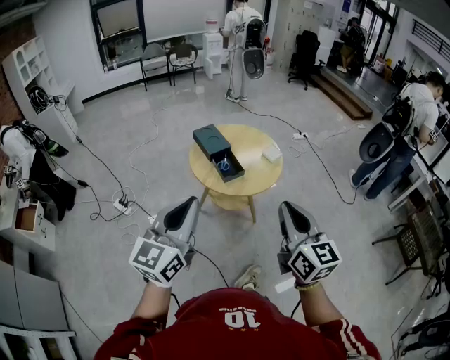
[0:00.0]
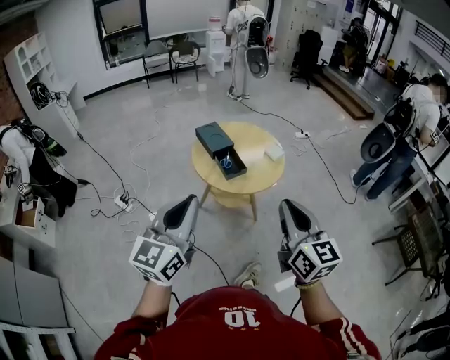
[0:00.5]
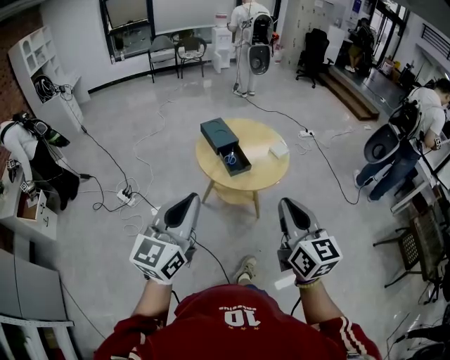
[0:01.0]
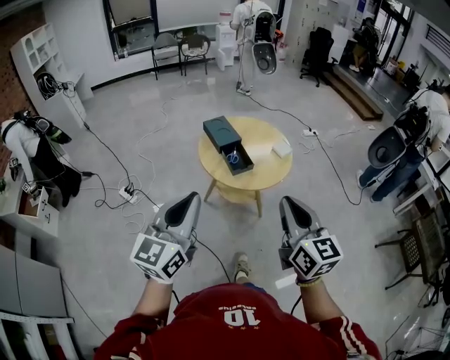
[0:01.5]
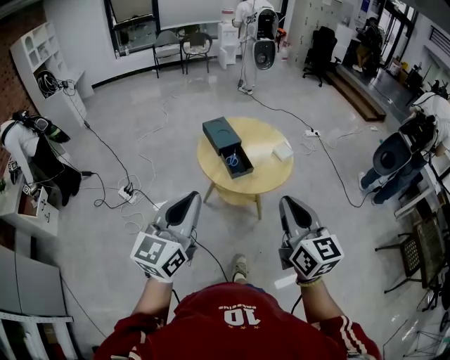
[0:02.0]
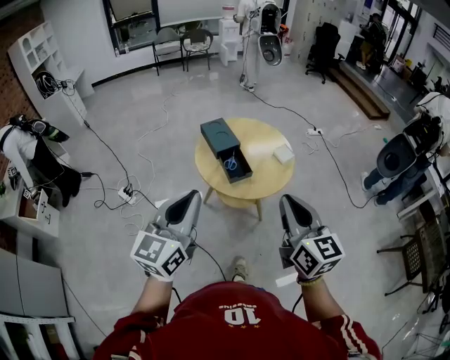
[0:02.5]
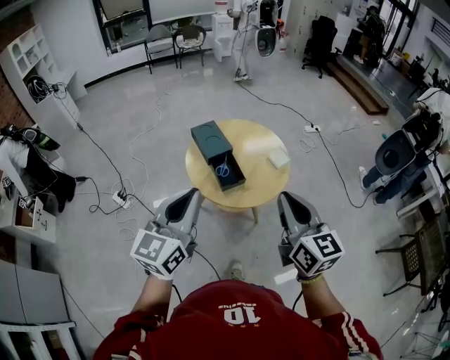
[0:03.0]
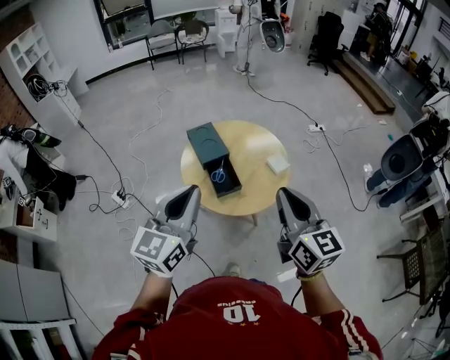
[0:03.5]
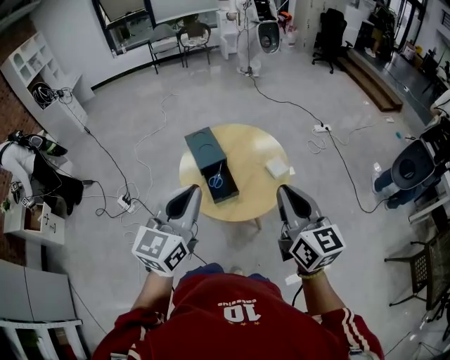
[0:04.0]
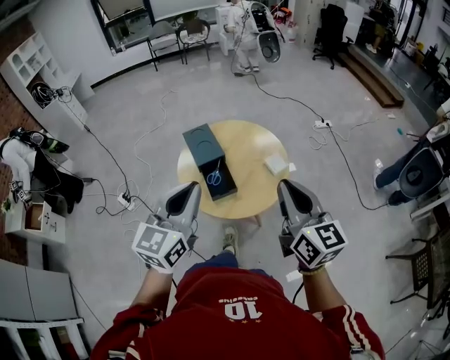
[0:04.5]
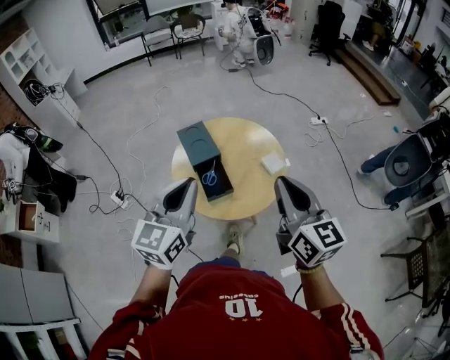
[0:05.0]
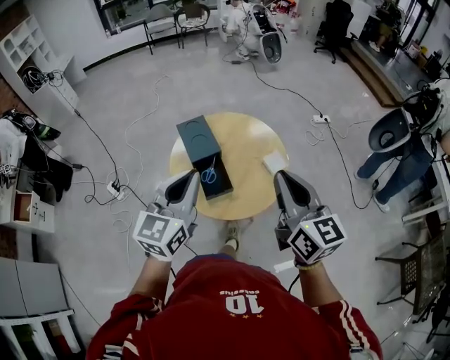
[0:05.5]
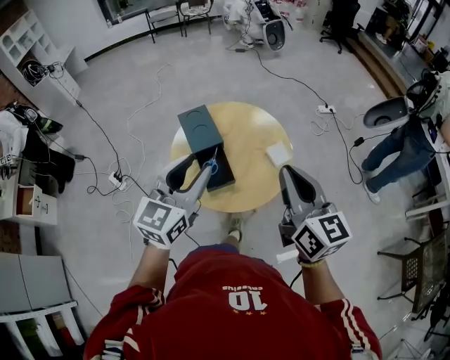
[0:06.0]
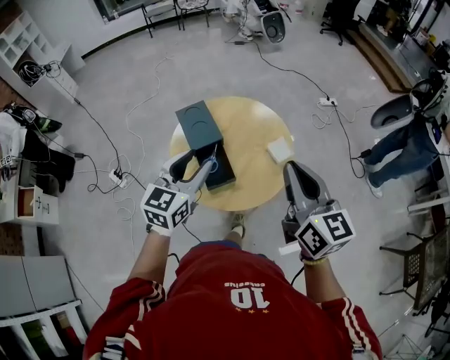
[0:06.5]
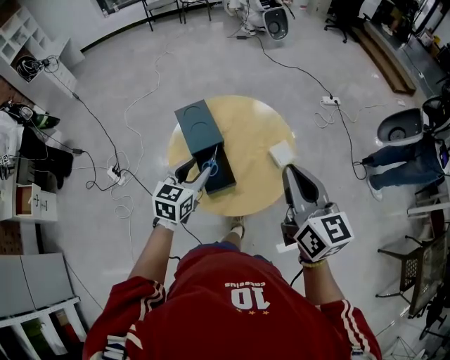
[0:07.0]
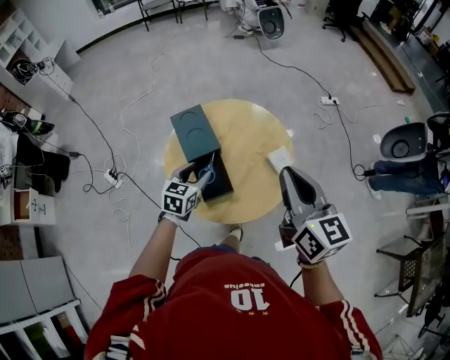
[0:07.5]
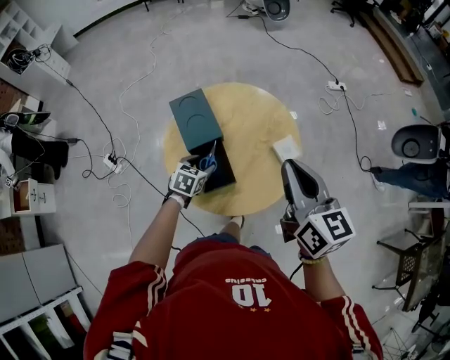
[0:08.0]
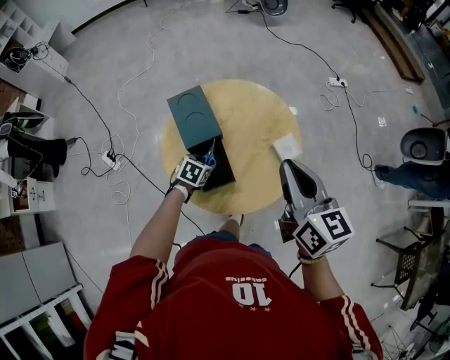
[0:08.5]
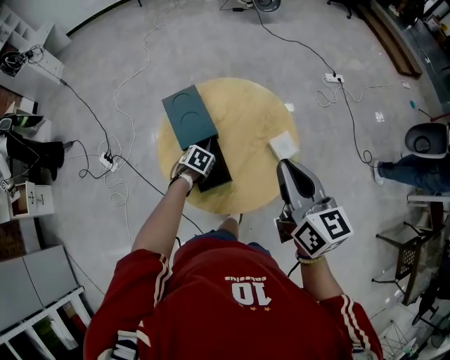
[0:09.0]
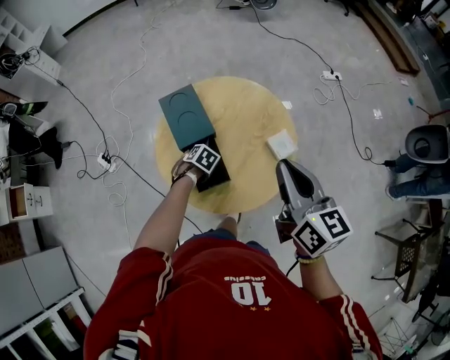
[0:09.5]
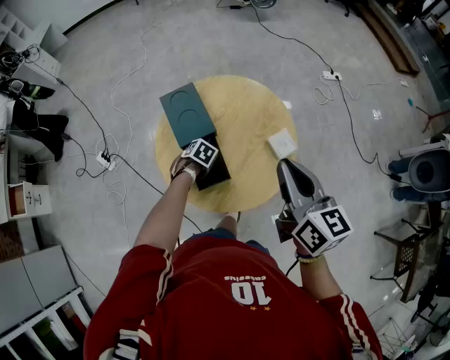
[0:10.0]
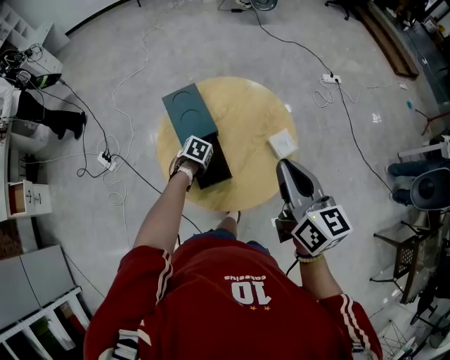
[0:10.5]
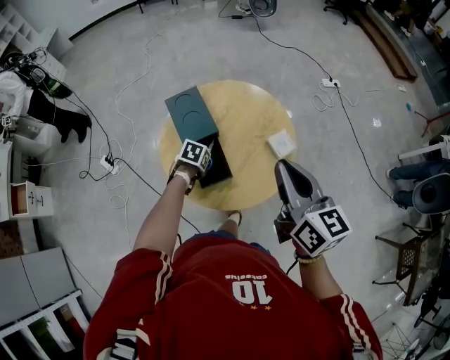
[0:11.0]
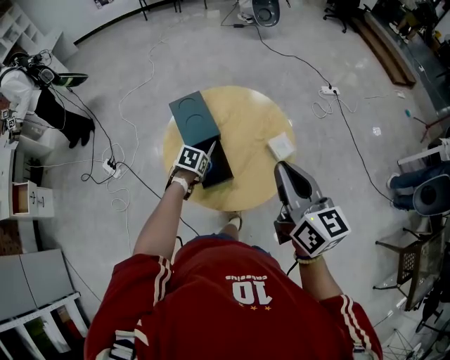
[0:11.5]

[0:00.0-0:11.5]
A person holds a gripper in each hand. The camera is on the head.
0:00.0 to 0:02.0: The right gripper changes place by some 5 cm.
0:02.0 to 0:04.0: The grippers both shift forward and to the right by some 25 cm.
0:04.0 to 0:06.0: The left gripper goes about 10 cm forward and downward, and opens up; the right gripper travels forward by roughly 10 cm.
0:06.0 to 0:07.5: The right gripper is displaced forward by some 10 cm; the left gripper is displaced downward and forward by about 30 cm, and turns by approximately 30 degrees.
0:07.5 to 0:09.5: The right gripper heads downward, covering approximately 5 cm, while the left gripper heads downward, covering roughly 20 cm, and tilts its fingers approximately 50 degrees downward.
0:09.5 to 0:11.5: The left gripper moves upward, about 10 cm, swivels some 20 degrees, and closes. The right gripper ends up roughly 5 cm from where it was.

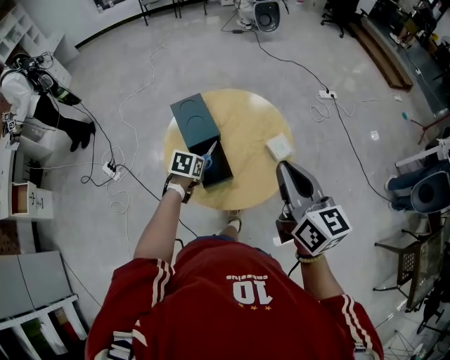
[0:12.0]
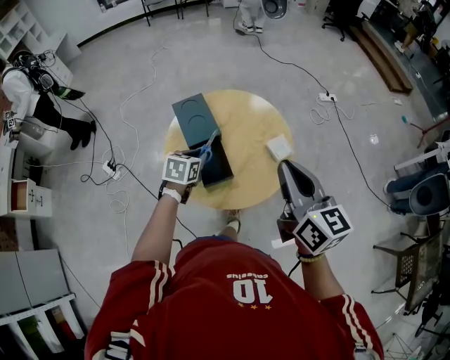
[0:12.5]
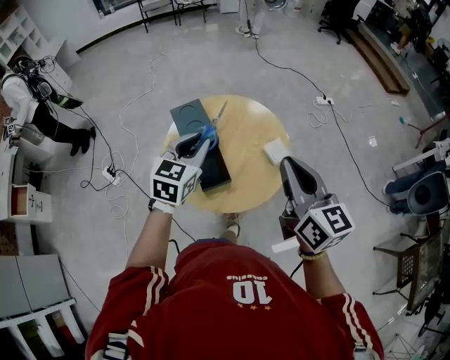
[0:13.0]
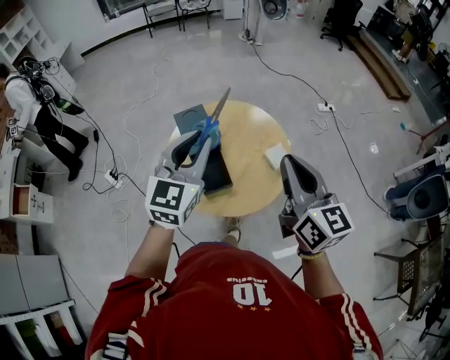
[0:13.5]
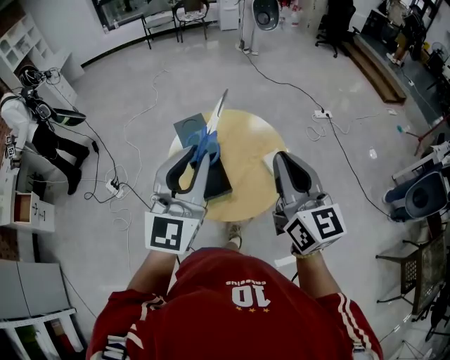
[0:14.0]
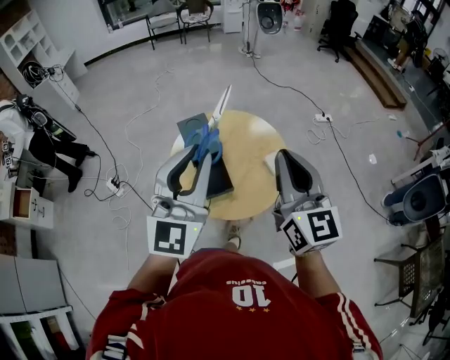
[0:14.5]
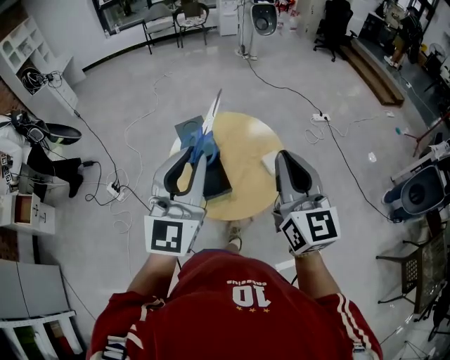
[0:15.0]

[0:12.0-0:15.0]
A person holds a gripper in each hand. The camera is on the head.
0:12.0 to 0:13.5: The left gripper heads upward, covering some 35 cm, and angles its fingers upward, by about 50 degrees.
0:13.5 to 0:15.0: The left gripper goes roughly 10 cm backward and upward. Meanwhile the right gripper shifts by roughly 5 cm.

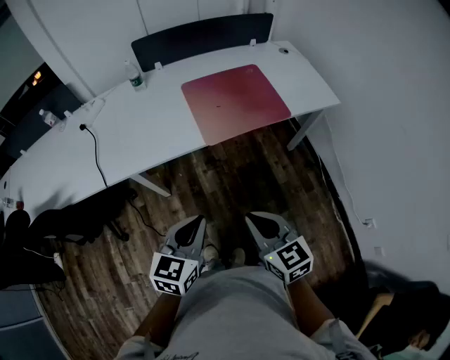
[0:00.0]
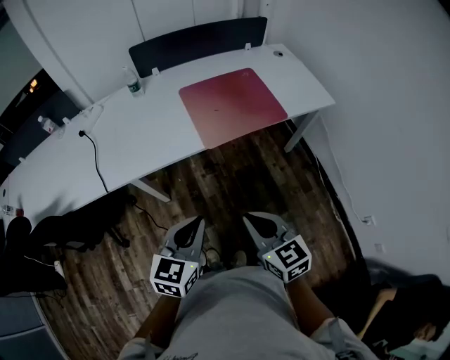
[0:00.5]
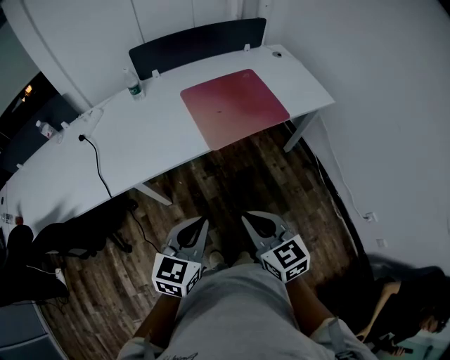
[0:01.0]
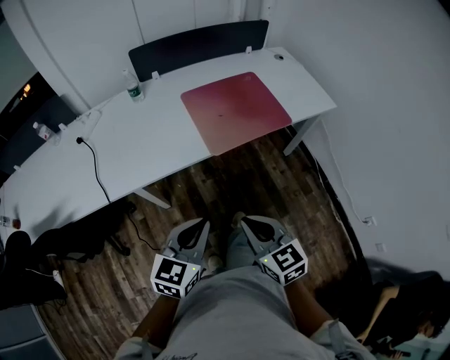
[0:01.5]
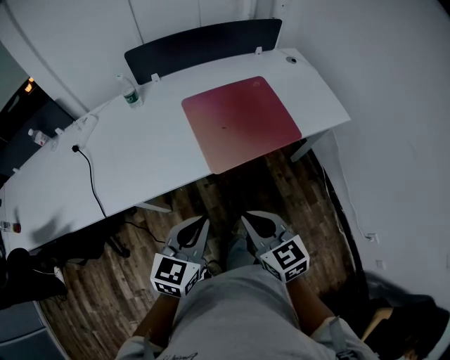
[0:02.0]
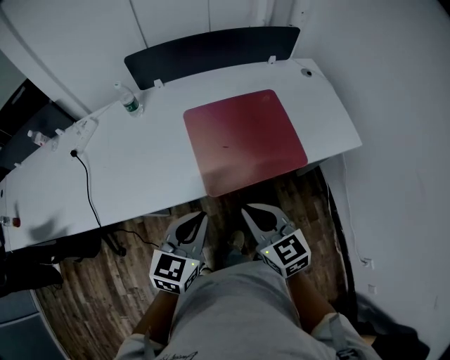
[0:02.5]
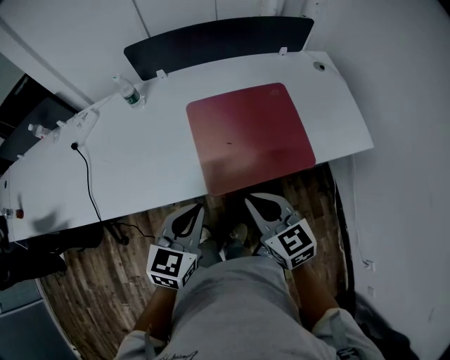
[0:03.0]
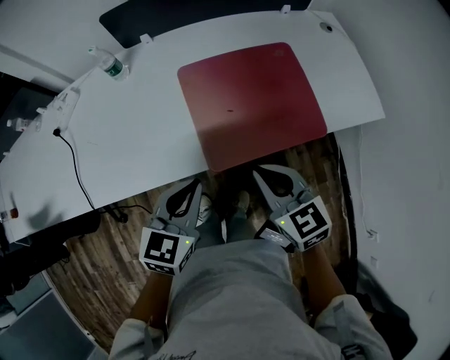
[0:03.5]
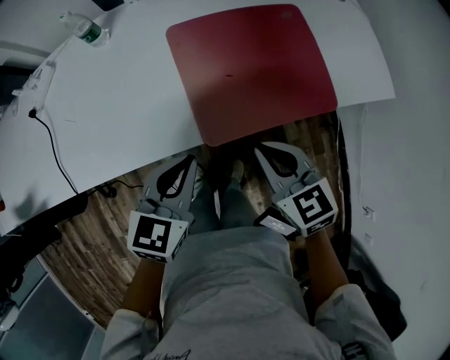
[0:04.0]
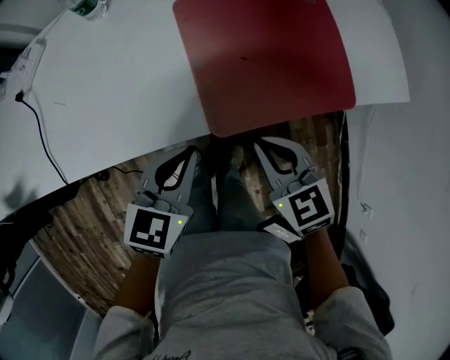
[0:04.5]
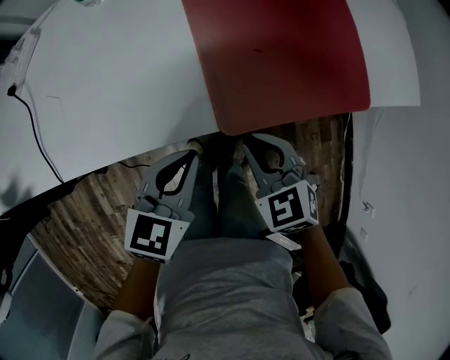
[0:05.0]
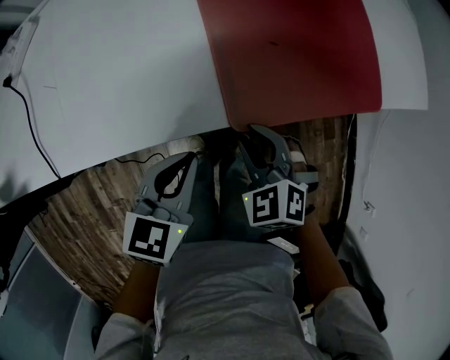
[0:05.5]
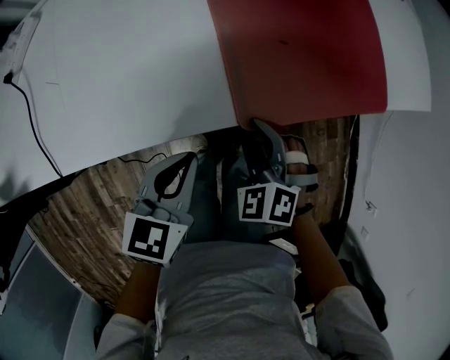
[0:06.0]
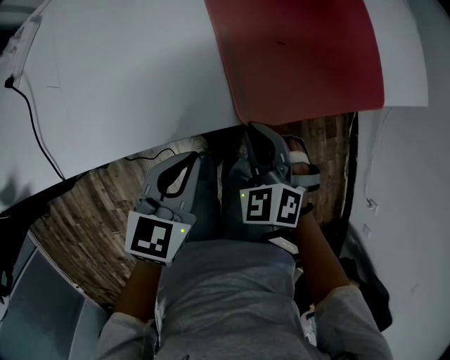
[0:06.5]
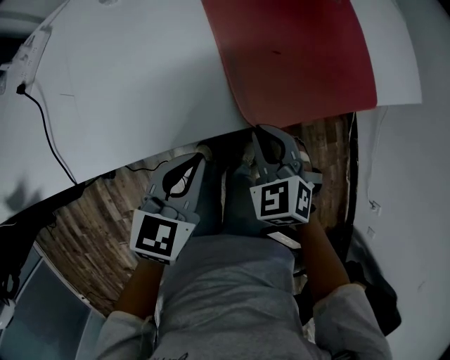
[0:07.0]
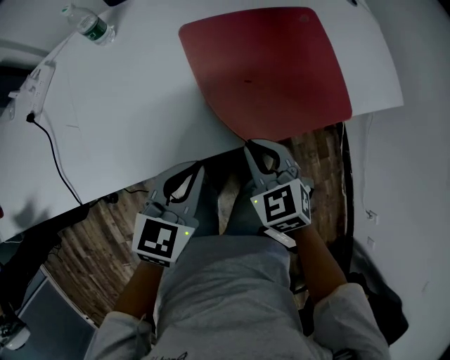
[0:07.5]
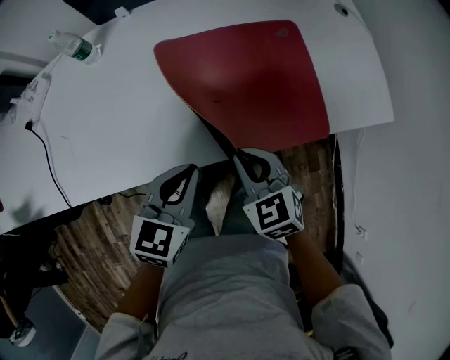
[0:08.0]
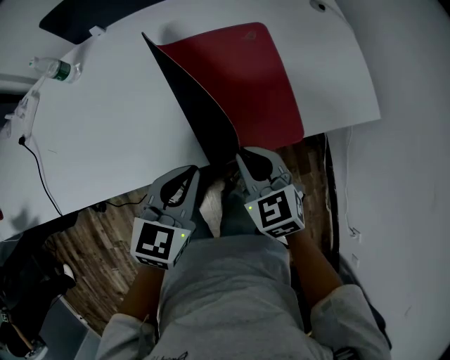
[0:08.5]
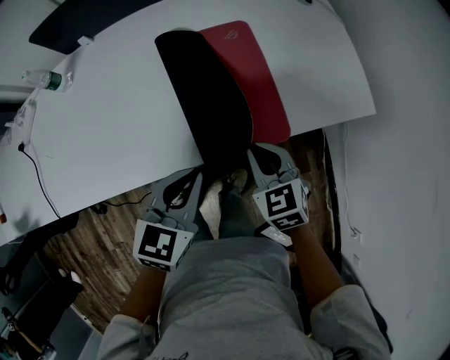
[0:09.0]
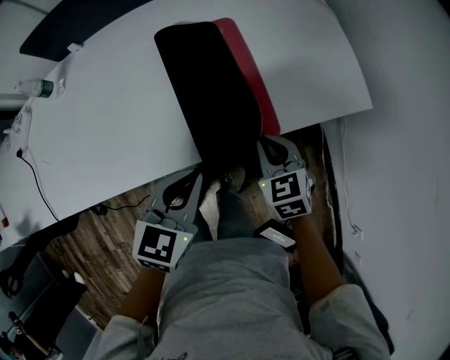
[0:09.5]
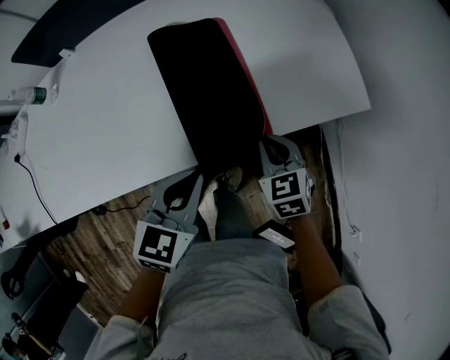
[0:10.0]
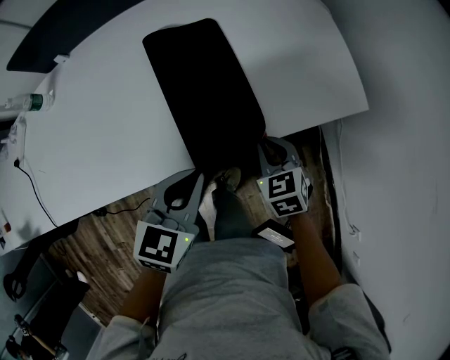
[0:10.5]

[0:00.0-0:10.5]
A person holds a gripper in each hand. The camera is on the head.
0:00.0 to 0:02.0: Both grippers move forward, roughly 15 cm.
0:02.0 to 0:04.0: Both grippers travel together forward and downward, roughly 20 cm.
0:04.0 to 0:06.5: Both grippers travel together downward and to the left, some 15 cm. The right gripper changes its angle by roughly 40 degrees, and opens, then closes once more.
0:06.5 to 0:08.5: The right gripper travels to the right, upward and forward by some 25 cm, and rotates roughly 30 degrees; the left gripper heads to the right, forward and upward, covering approximately 25 cm.
0:08.5 to 0:10.5: The left gripper moves to the right, approximately 15 cm, while the right gripper heads to the right and downward, covering roughly 20 cm.

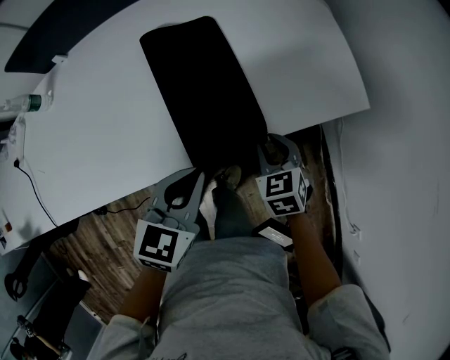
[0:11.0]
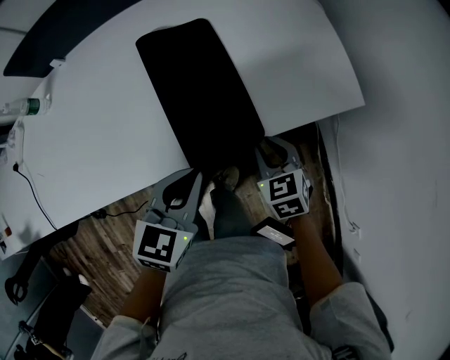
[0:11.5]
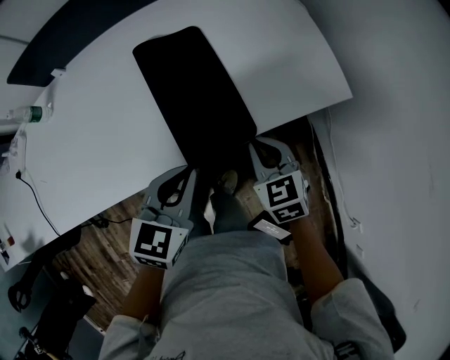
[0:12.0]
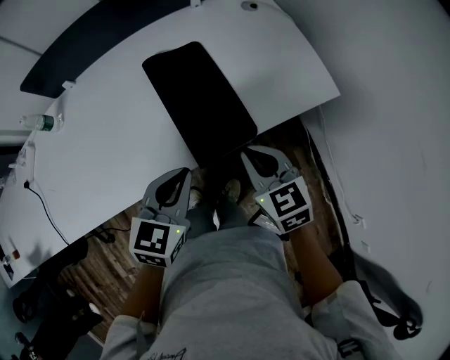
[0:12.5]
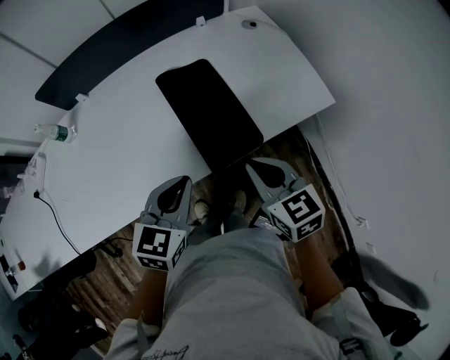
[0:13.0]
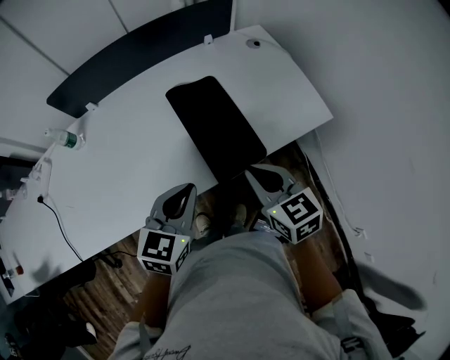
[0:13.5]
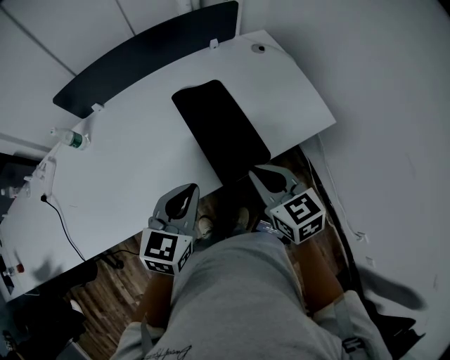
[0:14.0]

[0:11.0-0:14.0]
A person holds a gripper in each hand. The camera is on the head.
0:11.0 to 0:12.5: The left gripper travels upward by some 5 cm; the right gripper shifts some 15 cm upward, changes its angle by roughly 20 degrees, and closes its fingers.
0:12.5 to 0:14.0: The grippers both shift upward and to the left by some 10 cm.
